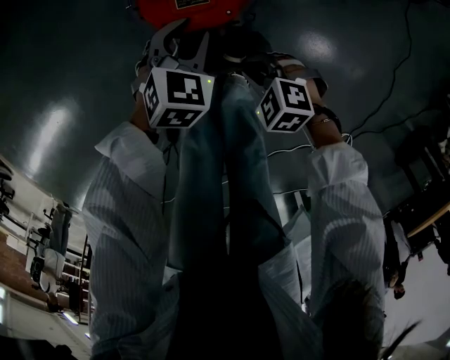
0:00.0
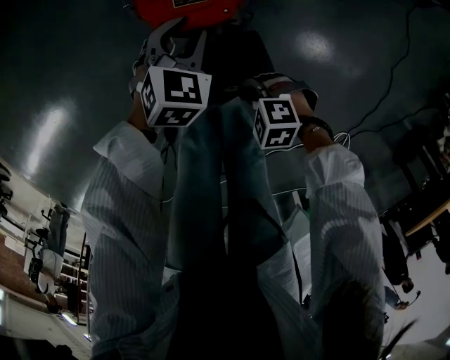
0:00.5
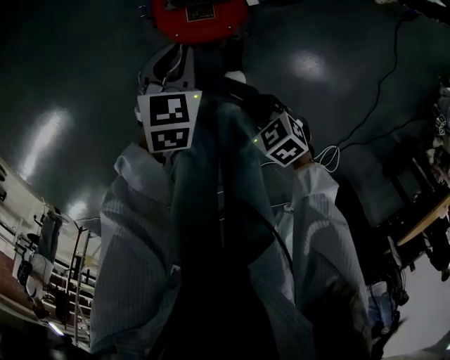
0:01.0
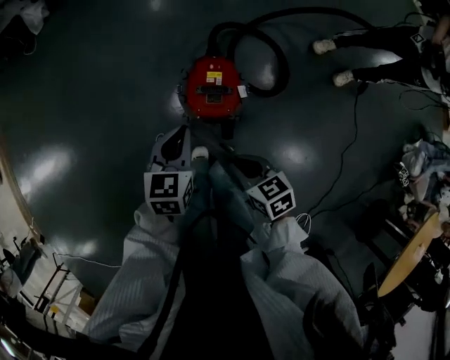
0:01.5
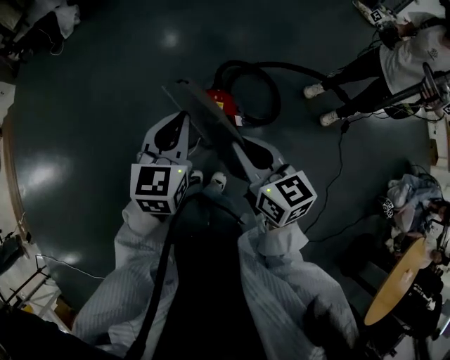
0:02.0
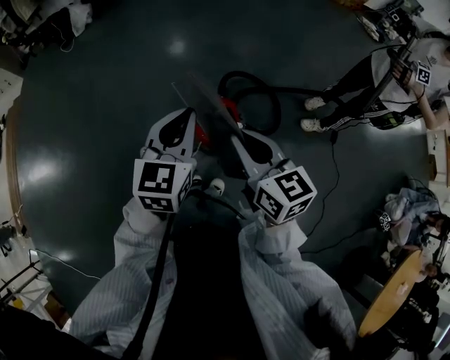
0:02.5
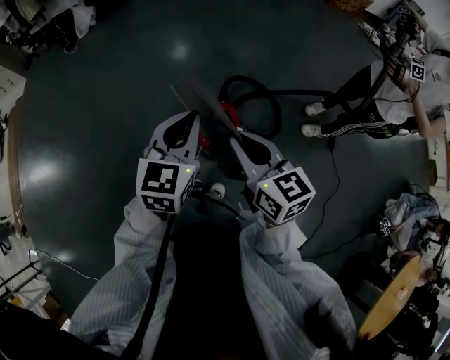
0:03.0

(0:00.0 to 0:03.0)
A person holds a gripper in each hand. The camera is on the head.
0:00.0 - 0:01.5: The two grippers go some 35 cm upward. The right gripper rotates about 50 degrees. The left gripper swivels roughly 40 degrees, and closes.
0:01.5 - 0:03.0: The grippers both shift upward by roughly 30 cm. The left gripper rotates roughly 20 degrees; the right gripper changes its angle by approximately 30 degrees.

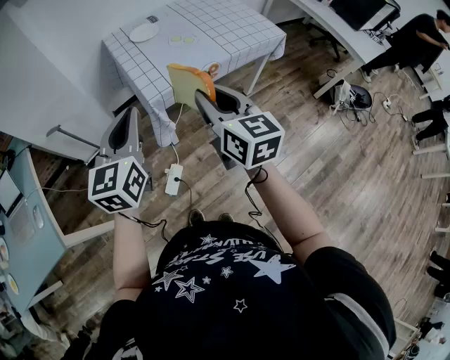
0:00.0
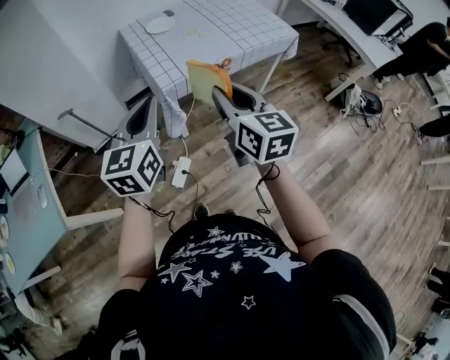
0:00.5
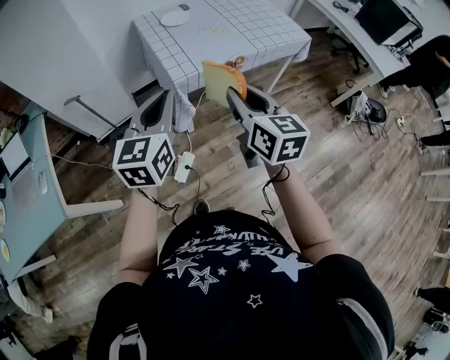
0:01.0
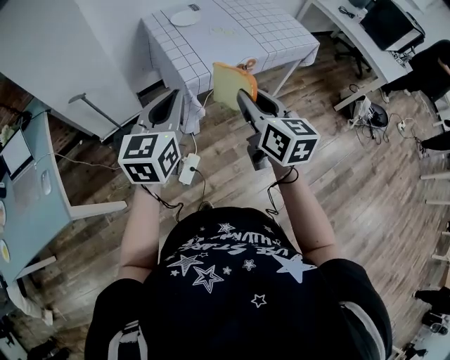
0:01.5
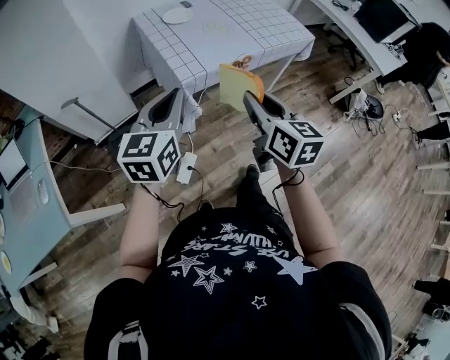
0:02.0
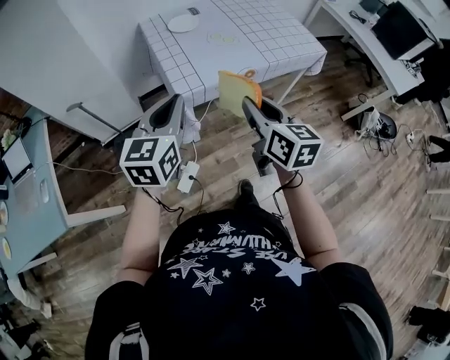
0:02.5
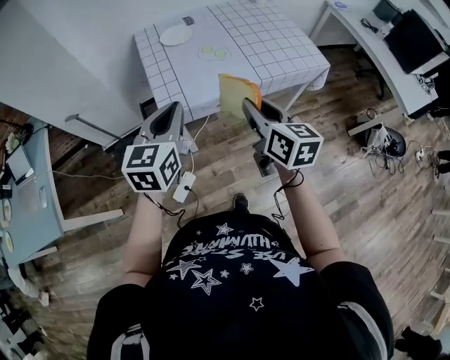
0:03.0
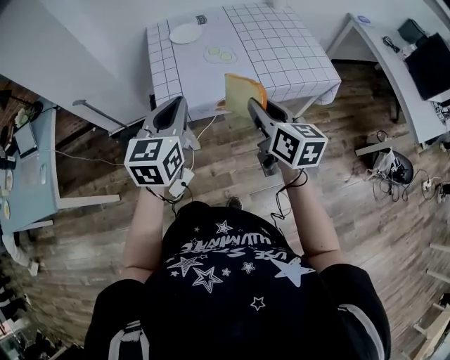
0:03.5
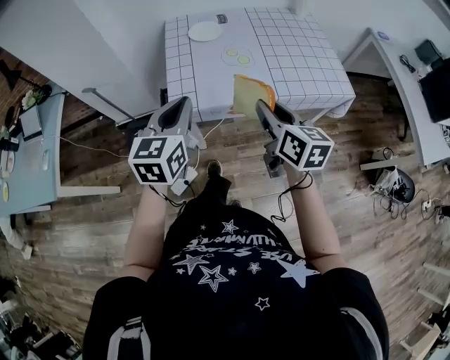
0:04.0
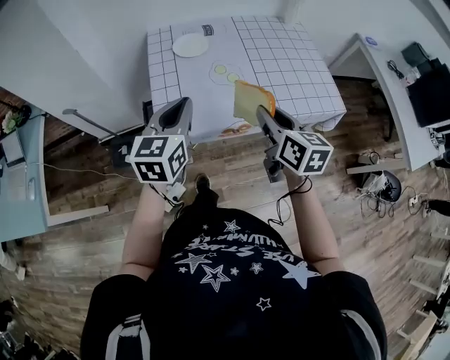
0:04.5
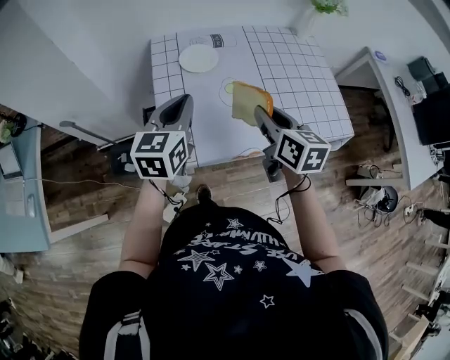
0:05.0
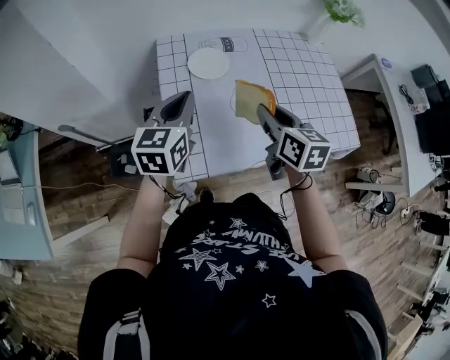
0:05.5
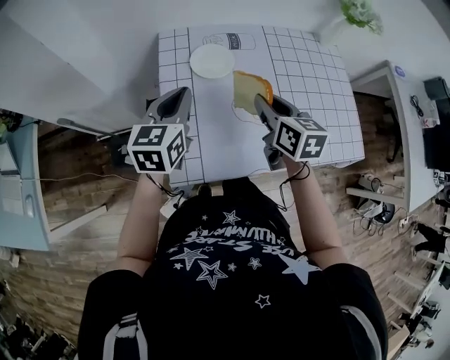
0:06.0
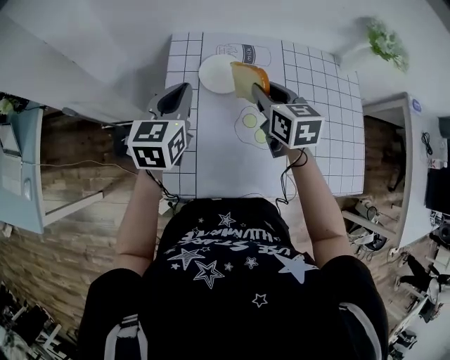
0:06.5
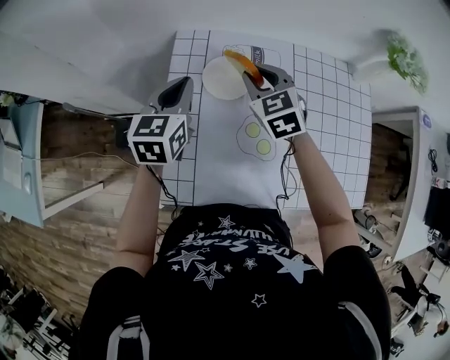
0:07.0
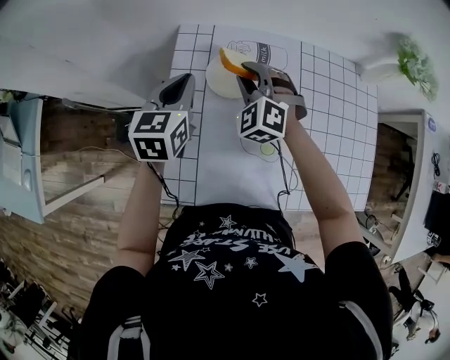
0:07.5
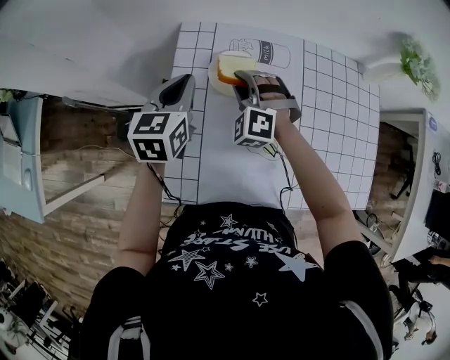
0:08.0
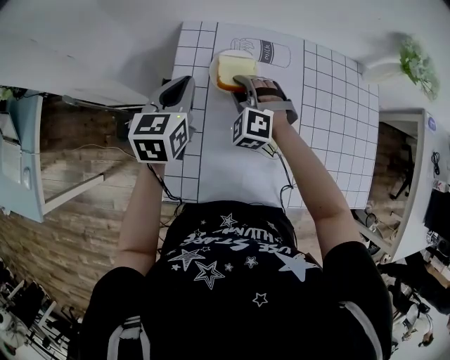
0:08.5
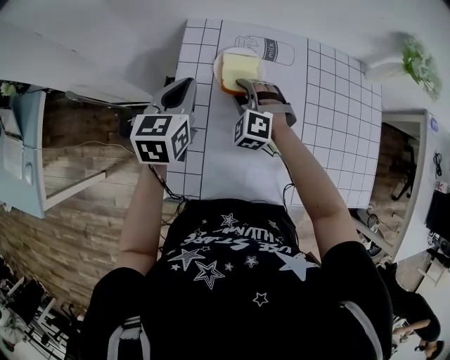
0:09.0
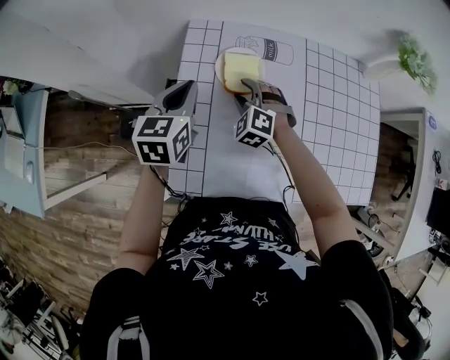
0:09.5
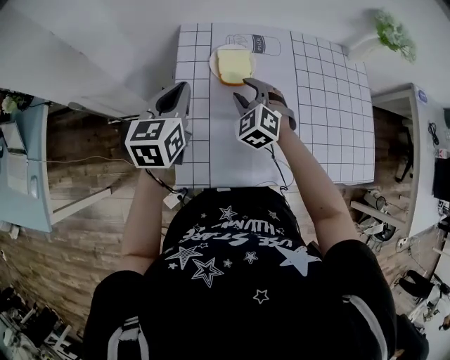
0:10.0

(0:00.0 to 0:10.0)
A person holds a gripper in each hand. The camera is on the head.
0:00.0 - 0:02.0: The grippers make only small movements.
0:02.0 - 0:04.0: The right gripper goes some 25 cm forward and to the right, and swivels approximately 20 degrees, while the left gripper moves to the right and forward, approximately 20 cm, and swivels some 20 degrees.
0:04.0 - 0:06.0: Both grippers move forward, some 30 cm.
0:06.0 - 0:08.0: The right gripper heads forward, downward and to the left, covering some 20 cm, and twists approximately 90 degrees counterclockwise, seen from behind; the left gripper travels forward by about 10 cm.
0:08.0 - 0:10.0: Both grippers travel together backward, approximately 5 cm. The right gripper swivels roughly 30 degrees, and opens.

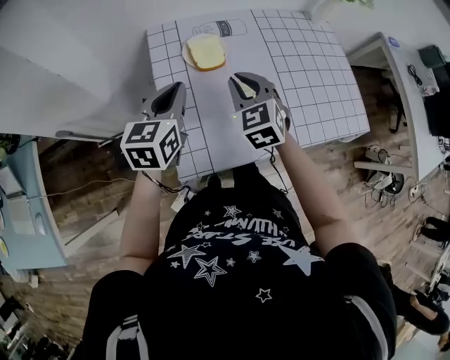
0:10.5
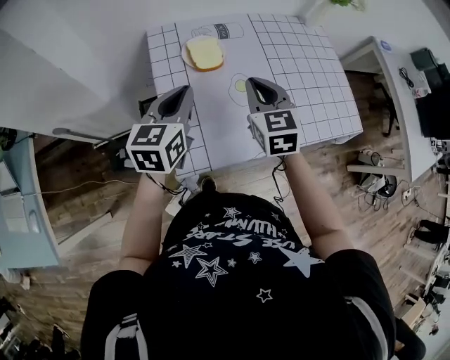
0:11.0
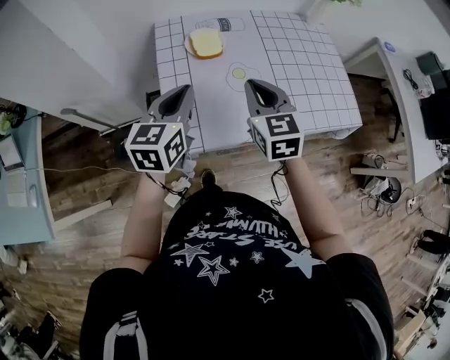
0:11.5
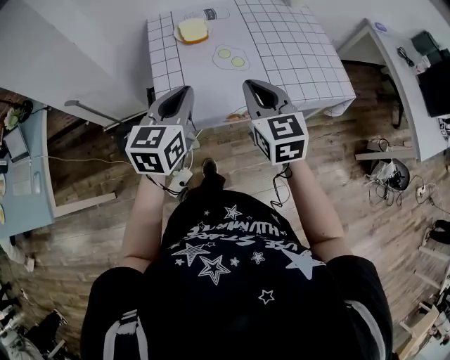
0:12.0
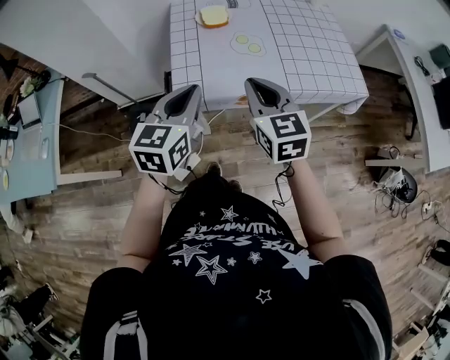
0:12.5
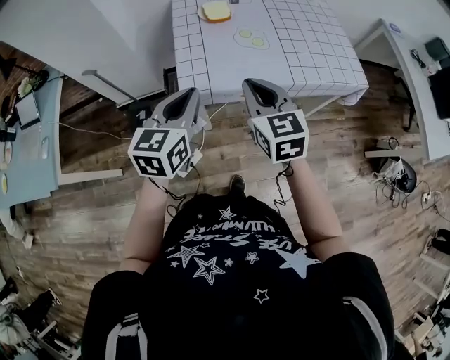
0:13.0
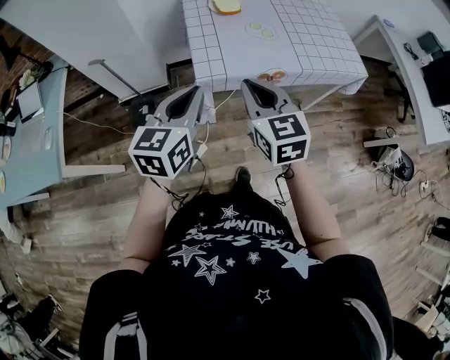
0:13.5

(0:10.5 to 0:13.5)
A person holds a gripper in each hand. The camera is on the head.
0:10.5 - 0:12.0: The grippers both shift backward and to the right by approximately 20 cm. The right gripper swivels some 20 degrees.
0:12.0 - 0:13.5: The two grippers go about 20 cm backward and to the left.

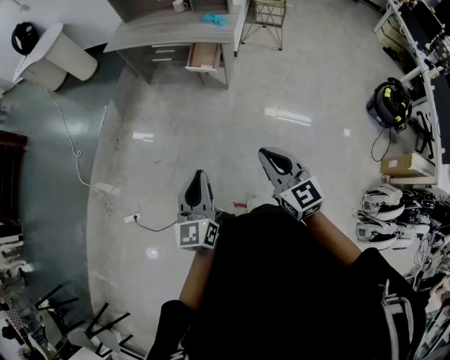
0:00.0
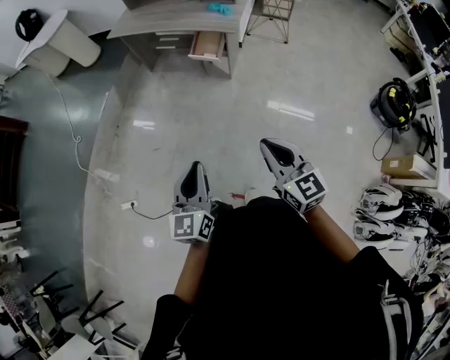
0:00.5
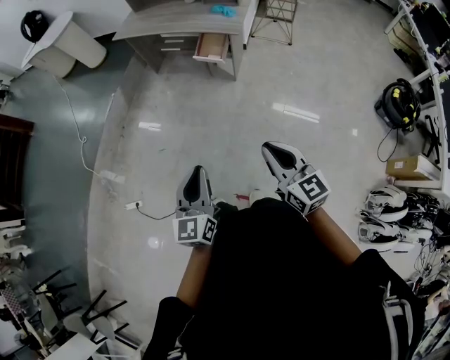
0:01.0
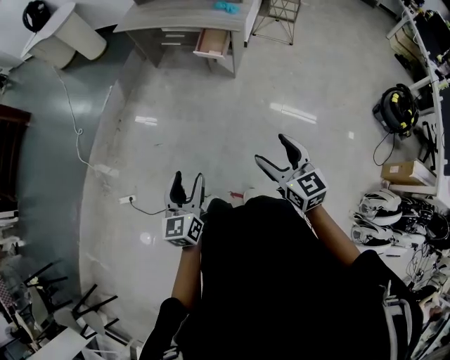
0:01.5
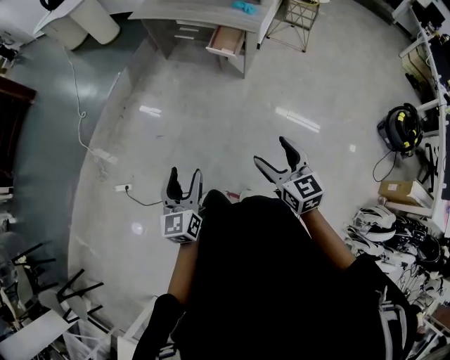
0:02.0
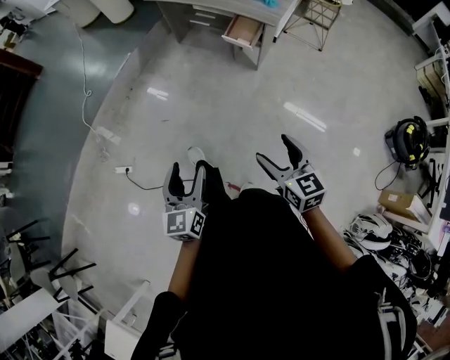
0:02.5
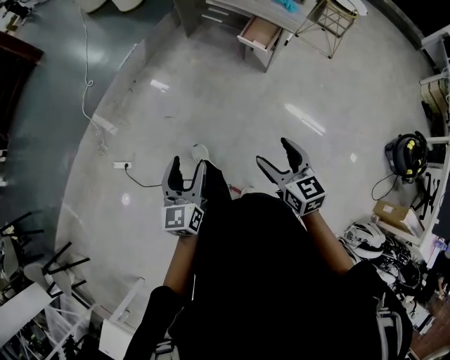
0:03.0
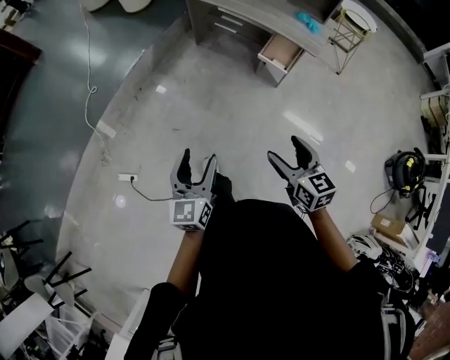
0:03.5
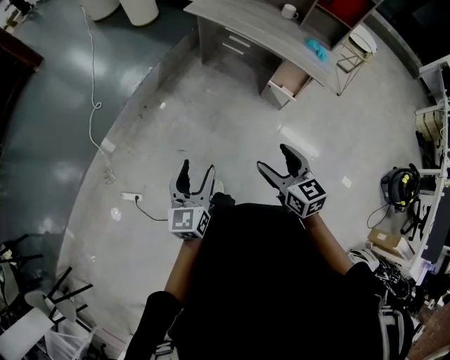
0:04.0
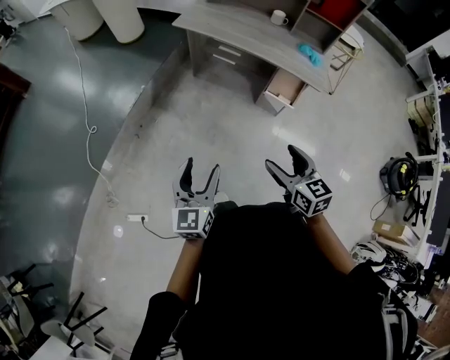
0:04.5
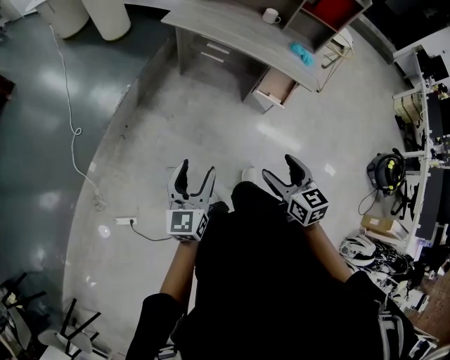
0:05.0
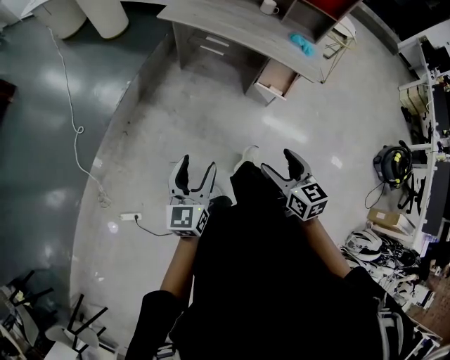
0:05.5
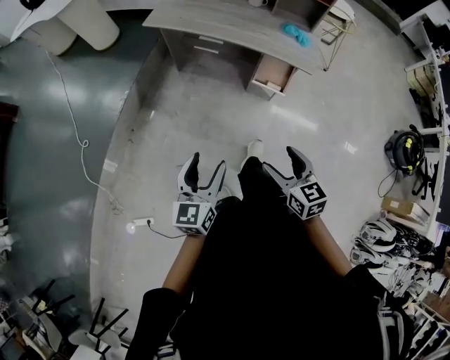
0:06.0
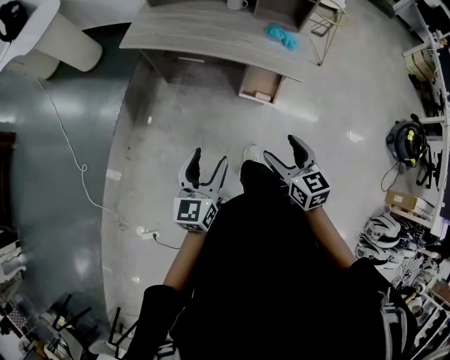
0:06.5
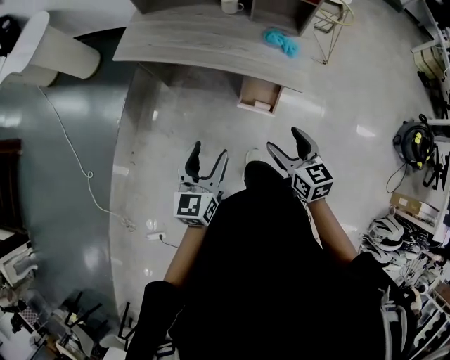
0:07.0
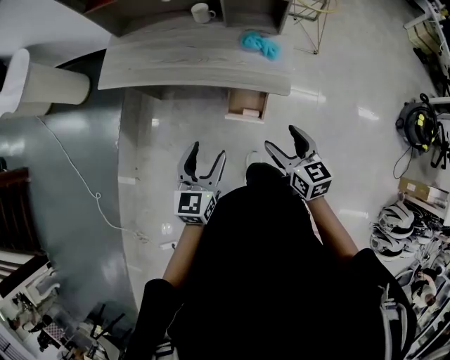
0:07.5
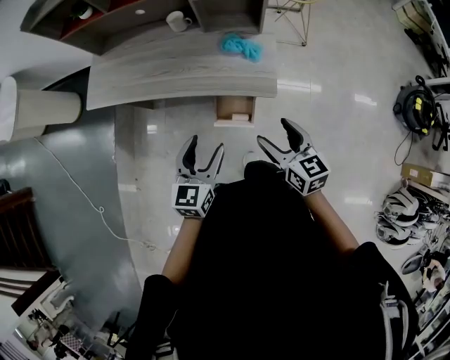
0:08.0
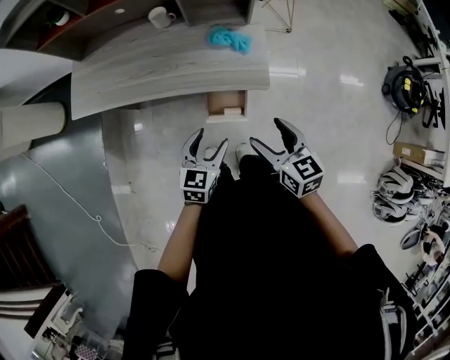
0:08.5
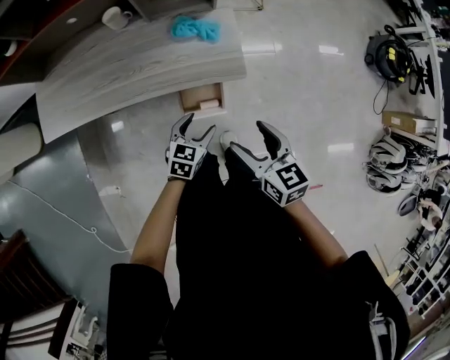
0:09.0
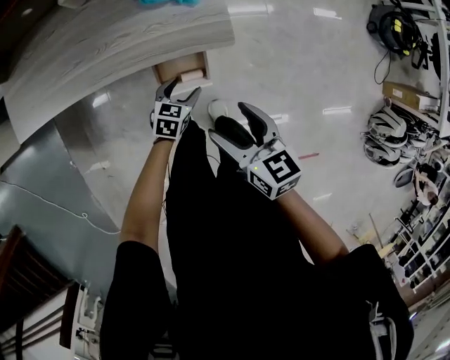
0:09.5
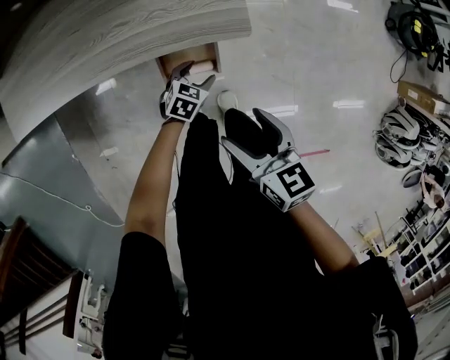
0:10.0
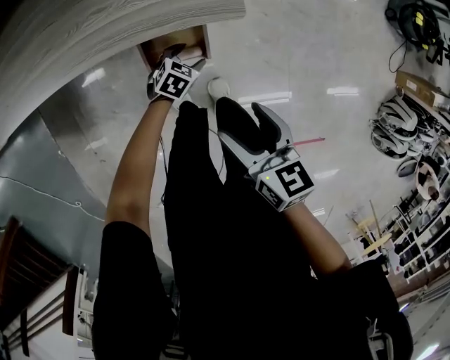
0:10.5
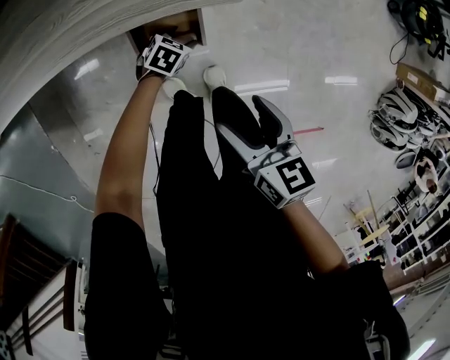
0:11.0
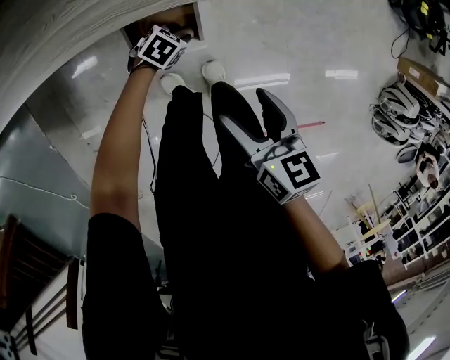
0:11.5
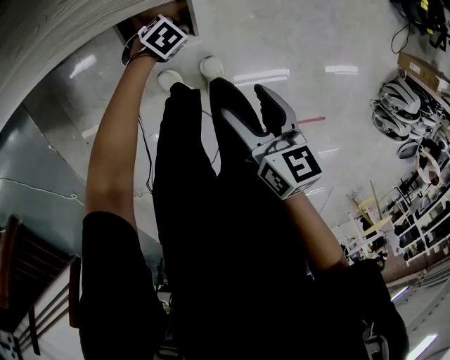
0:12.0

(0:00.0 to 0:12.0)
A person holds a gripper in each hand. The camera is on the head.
0:00.0 - 0:02.0: The right gripper moves downward, roughly 5 cm, and opens its fingers. Meanwhile the left gripper goes roughly 10 cm downward and to the left, and opens its fingers.
0:02.0 - 0:04.0: Both grippers are carried forward and to the left, some 40 cm.
0:04.0 - 0:06.0: The left gripper travels forward and to the right by about 15 cm. The right gripper travels forward and to the right by approximately 10 cm.
0:06.0 - 0:08.0: The two grippers travel together, forward and to the right, roughly 50 cm. The left gripper swivels approximately 20 degrees.
0:08.0 - 0:10.0: The right gripper goes roughly 15 cm downward. The left gripper heads downward, covering roughly 40 cm, and tips its fingers downward by about 30 degrees.
0:10.0 - 0:12.0: Both grippers travel together downward, about 10 cm. The left gripper turns by some 30 degrees, and closes.
